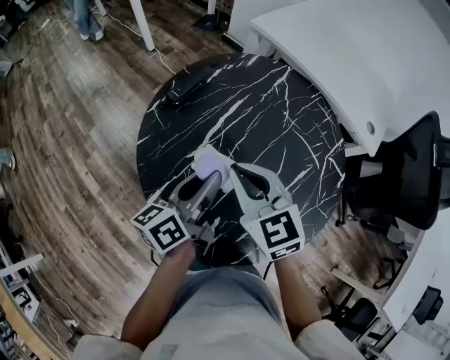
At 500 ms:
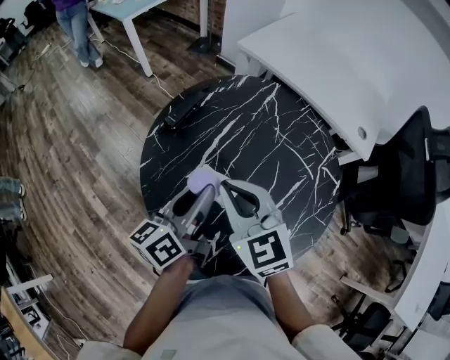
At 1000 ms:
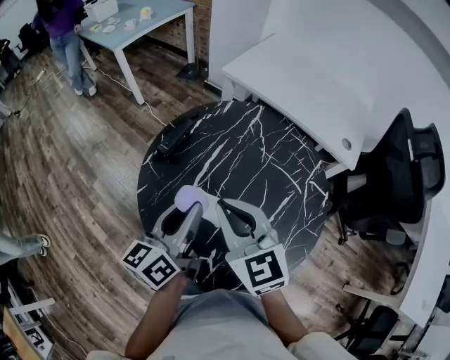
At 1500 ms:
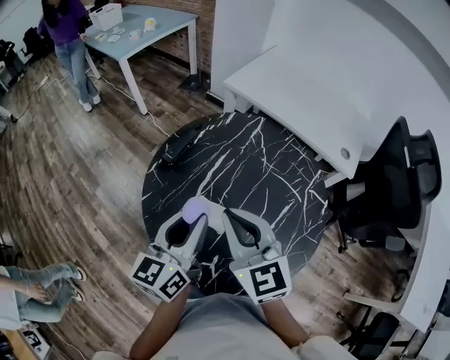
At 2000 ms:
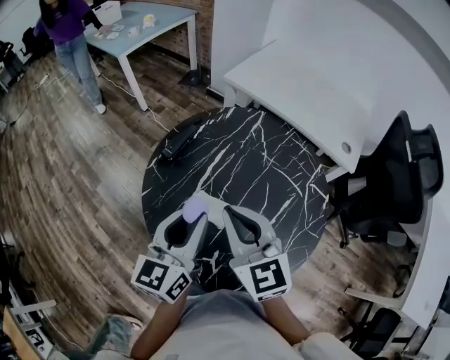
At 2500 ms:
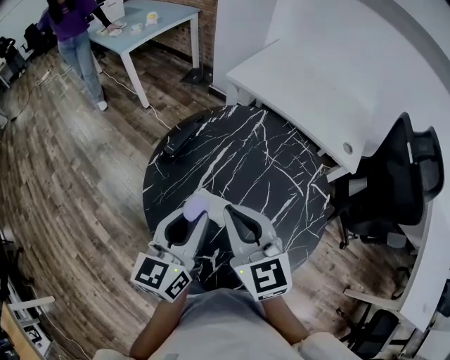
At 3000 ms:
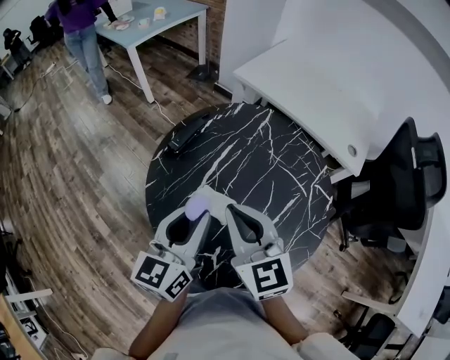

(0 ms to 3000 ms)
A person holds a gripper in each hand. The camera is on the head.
0 ms - 1500 ms: The grippers both shift upward by some 10 cm. The left gripper changes its angle by some 30 degrees.
1500 ms - 3000 ms: There are only small adjustments of the grippers.

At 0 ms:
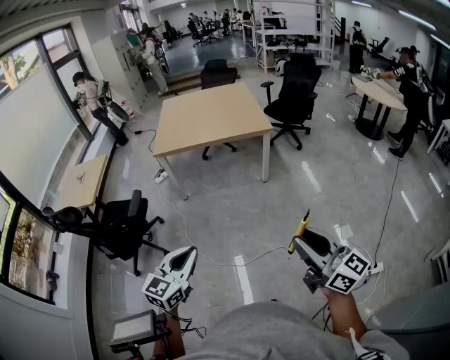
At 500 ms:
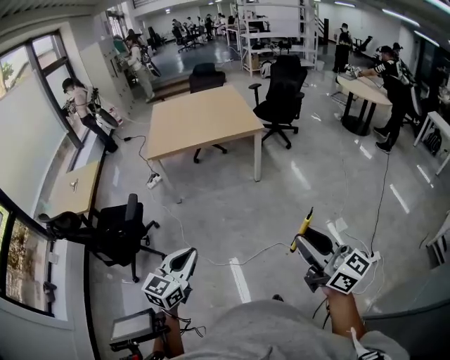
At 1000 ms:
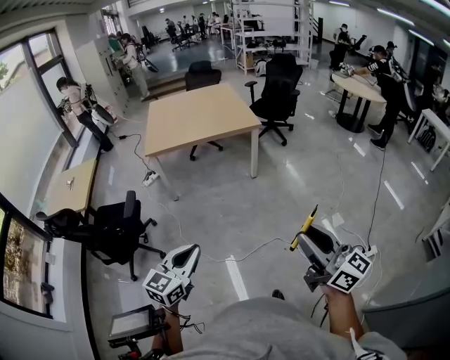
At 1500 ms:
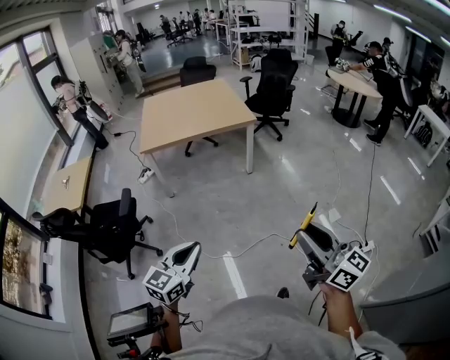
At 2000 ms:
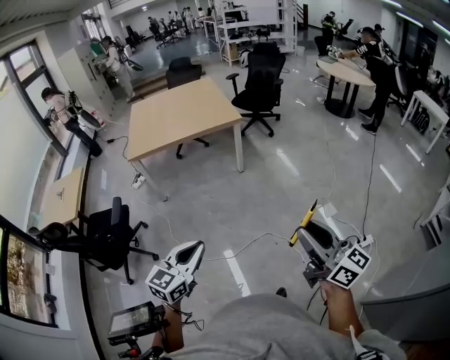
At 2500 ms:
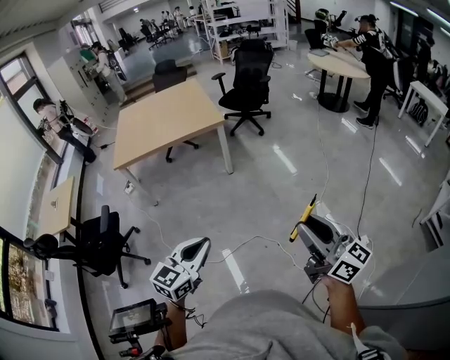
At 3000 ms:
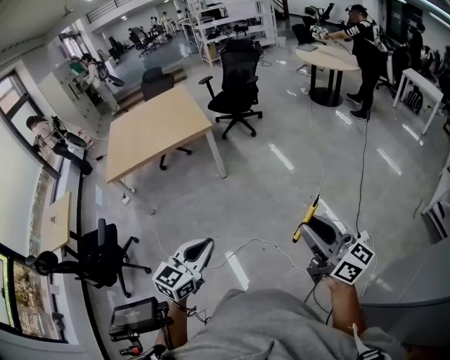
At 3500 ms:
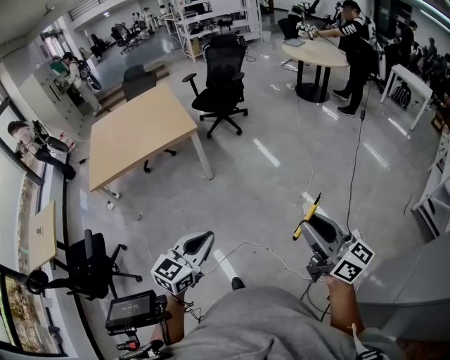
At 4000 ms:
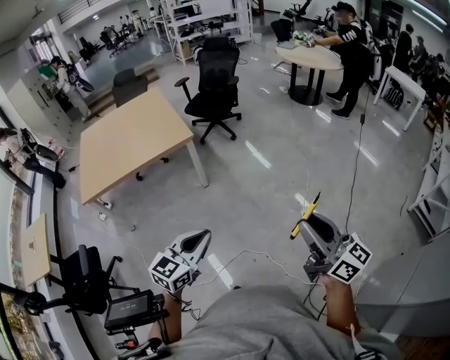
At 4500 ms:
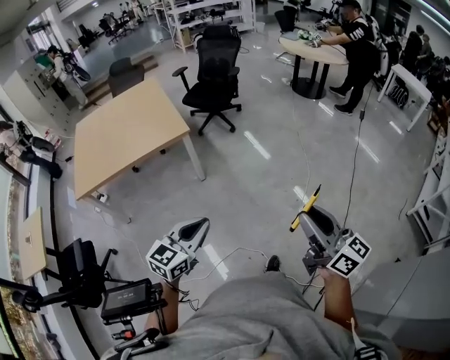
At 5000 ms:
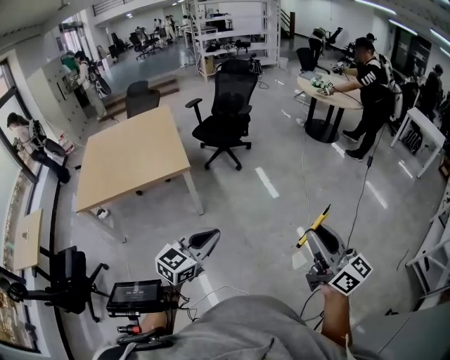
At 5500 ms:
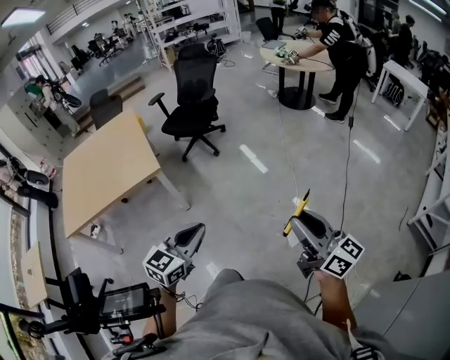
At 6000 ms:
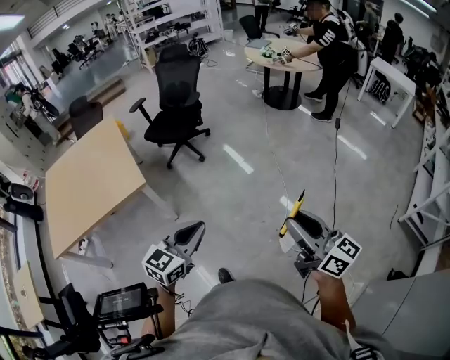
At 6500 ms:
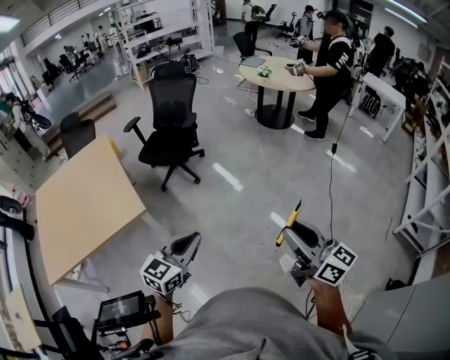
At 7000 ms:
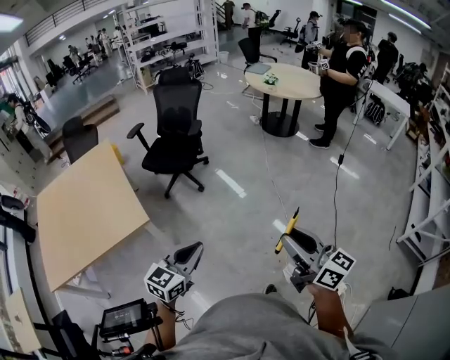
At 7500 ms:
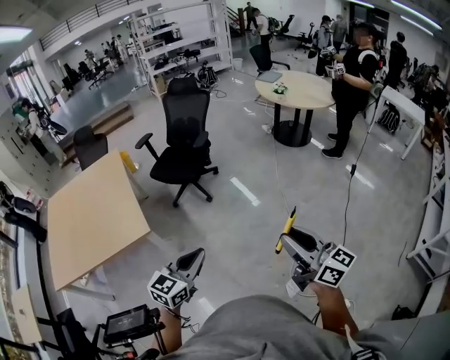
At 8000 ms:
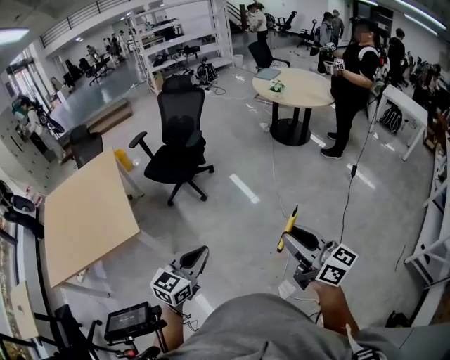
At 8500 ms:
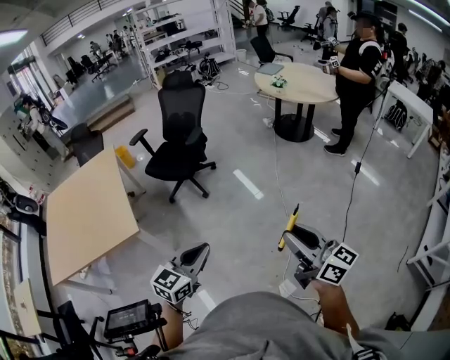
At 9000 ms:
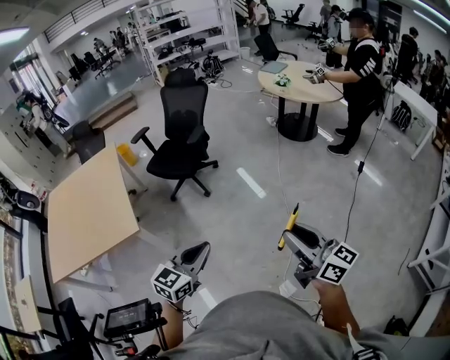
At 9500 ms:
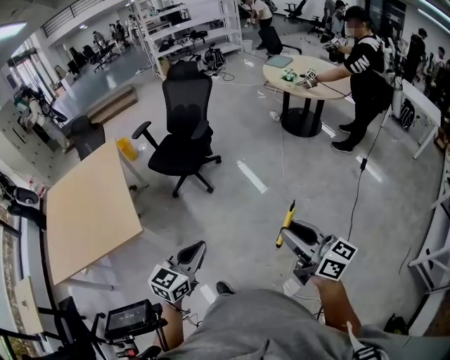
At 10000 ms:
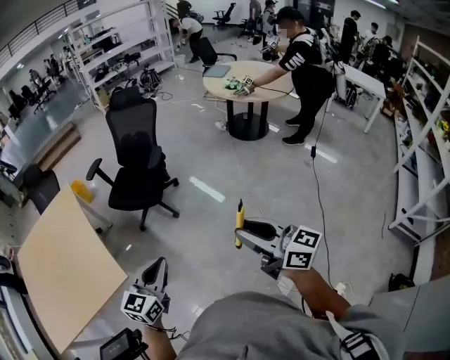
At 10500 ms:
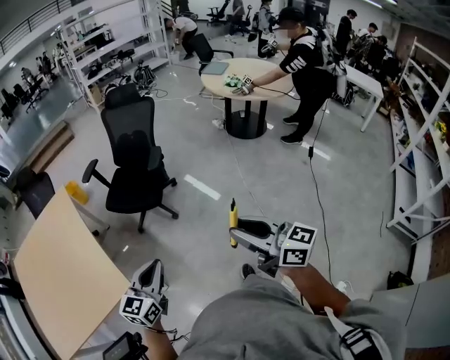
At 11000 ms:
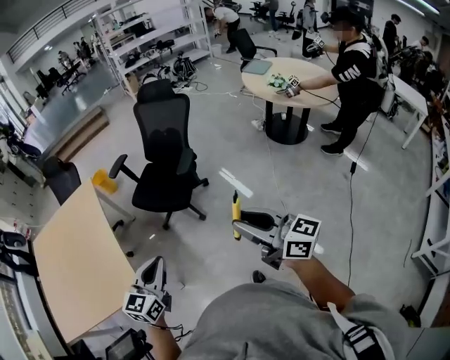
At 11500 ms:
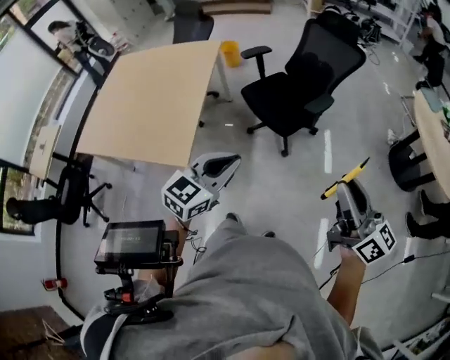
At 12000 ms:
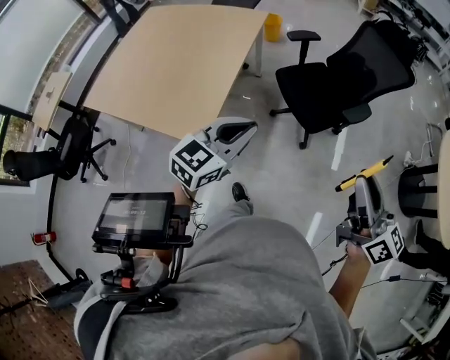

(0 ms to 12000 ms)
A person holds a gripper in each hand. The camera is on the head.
0 ms - 2000 ms: The right gripper is displaced backward by about 5 cm. Meanwhile the left gripper travels to the right by approximately 5 cm.
2000 ms - 4000 ms: The grippers both shift forward and to the right by about 35 cm.
4000 ms - 6000 ms: Both grippers are carried forward and to the right, about 40 cm.
6000 ms - 8000 ms: The two grippers go approximately 25 cm forward.
8000 ms - 10000 ms: Both grippers travel together forward and to the left, about 20 cm.
10000 ms - 12000 ms: The right gripper shifts by approximately 40 cm, and turns by some 30 degrees, while the left gripper changes place by roughly 35 cm, and swivels about 30 degrees.

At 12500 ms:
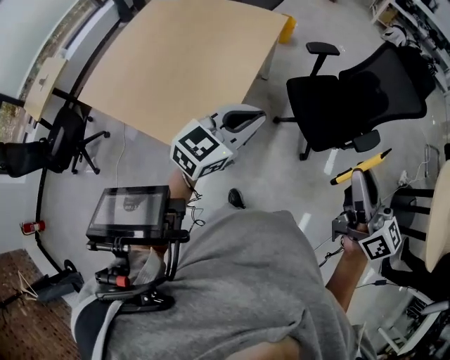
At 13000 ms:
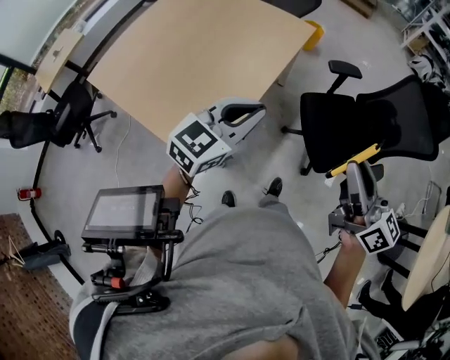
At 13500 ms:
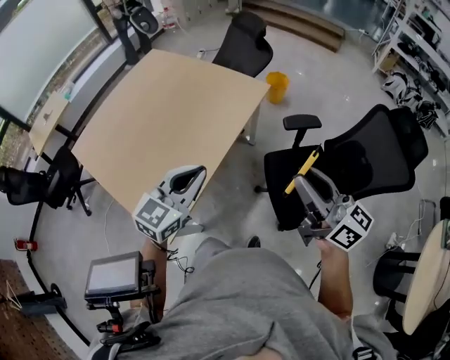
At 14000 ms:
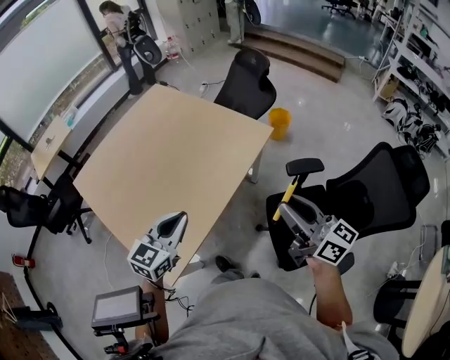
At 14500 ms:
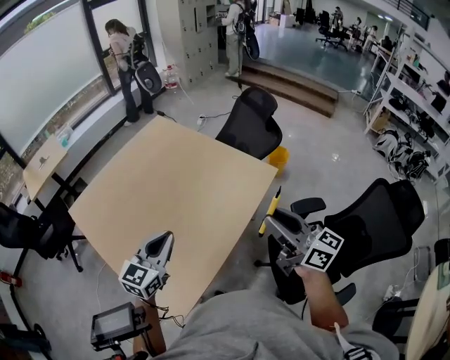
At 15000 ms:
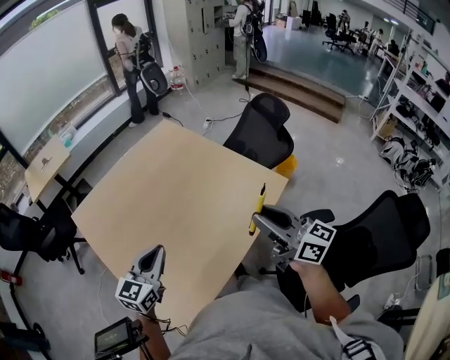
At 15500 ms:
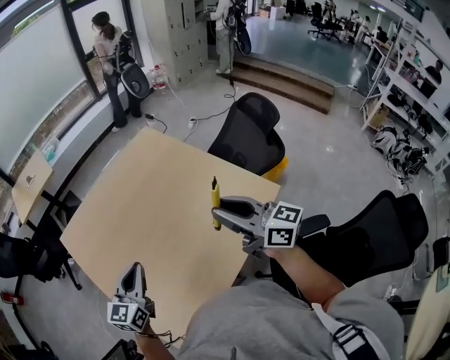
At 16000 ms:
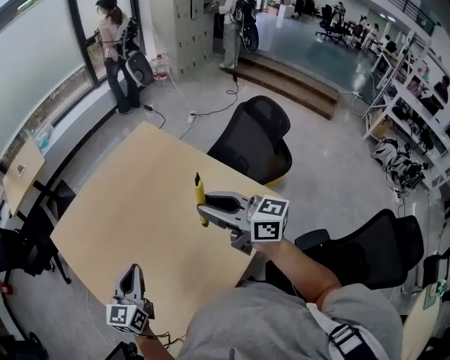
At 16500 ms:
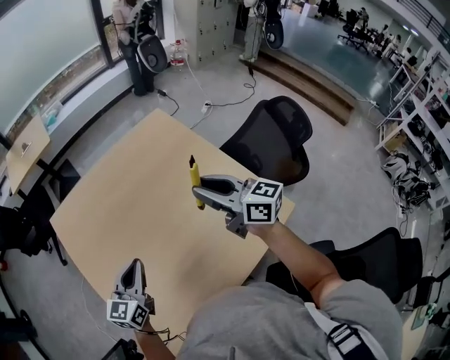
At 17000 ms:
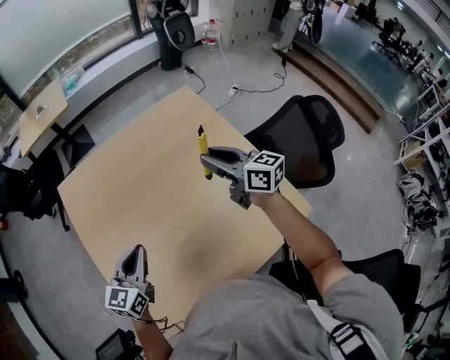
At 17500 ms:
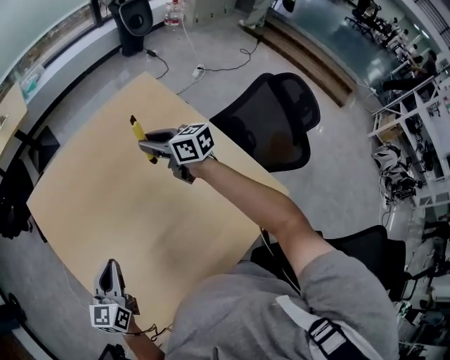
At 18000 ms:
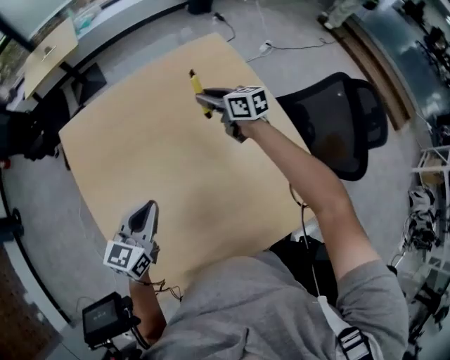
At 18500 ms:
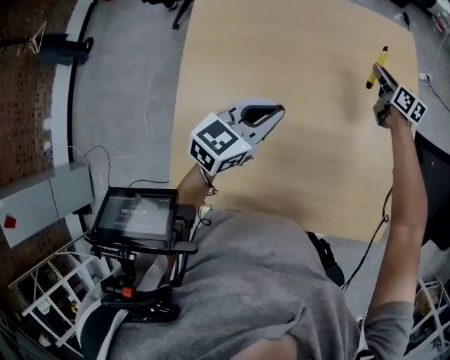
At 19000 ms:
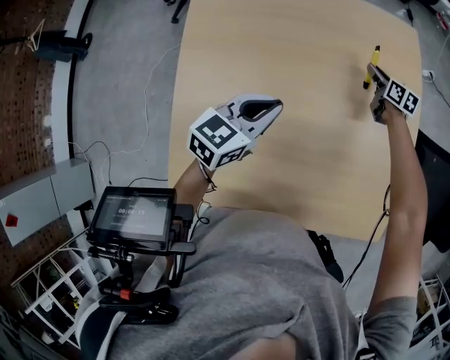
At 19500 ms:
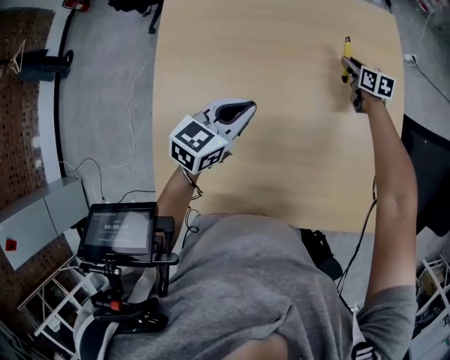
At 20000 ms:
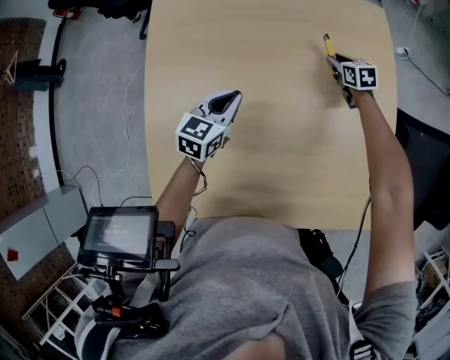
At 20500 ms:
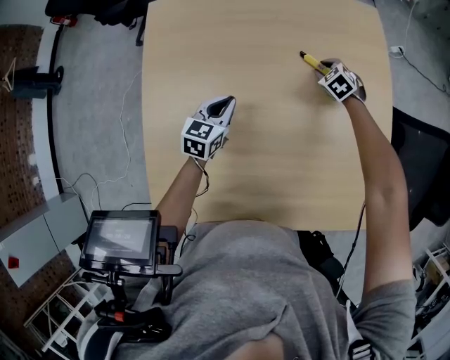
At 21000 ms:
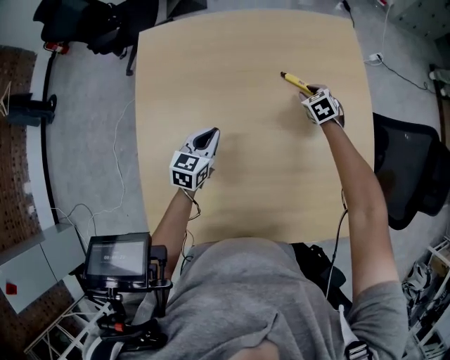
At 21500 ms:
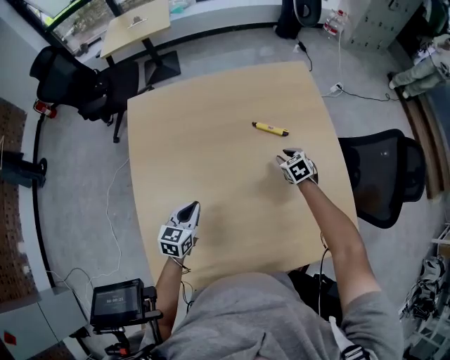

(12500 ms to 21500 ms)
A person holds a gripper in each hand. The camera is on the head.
12500 ms - 14500 ms: The right gripper changes place by approximately 50 cm, and swivels approximately 30 degrees, while the left gripper ends up roughly 40 cm from where it was, and turns by roughly 40 degrees.
14500 ms - 17000 ms: The right gripper moves about 60 cm, and swivels approximately 40 degrees; the left gripper moves about 25 cm, and swivels about 40 degrees.
17000 ms - 19500 ms: The left gripper heads downward, forward and to the right, covering roughly 15 cm; the right gripper is displaced downward and forward by approximately 40 cm, and points its fingers approximately 30 degrees further downward.
19500 ms - 21500 ms: The left gripper is displaced downward and to the left by roughly 20 cm; the right gripper goes some 15 cm backward, downward and to the left, and rotates roughly 30 degrees.

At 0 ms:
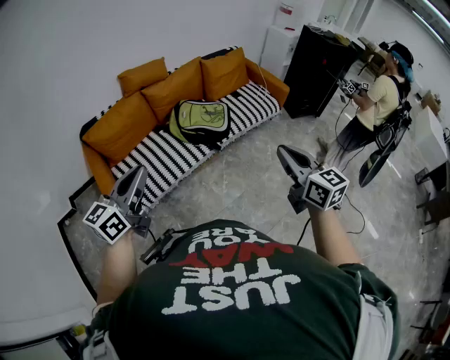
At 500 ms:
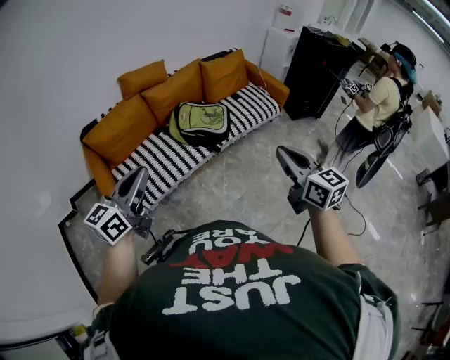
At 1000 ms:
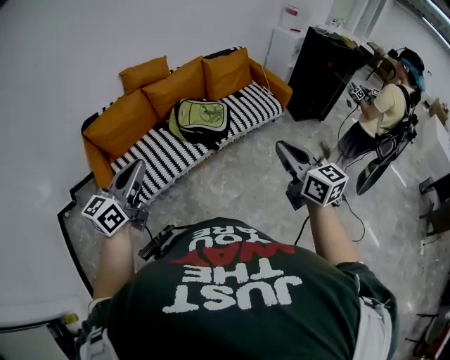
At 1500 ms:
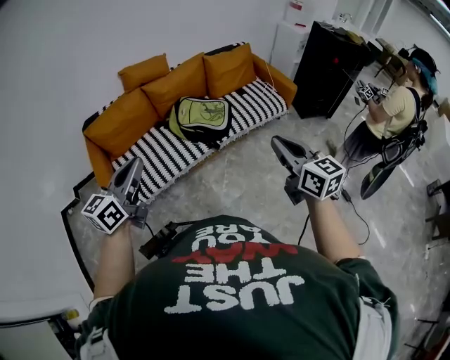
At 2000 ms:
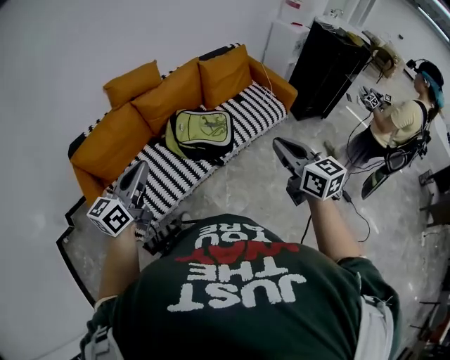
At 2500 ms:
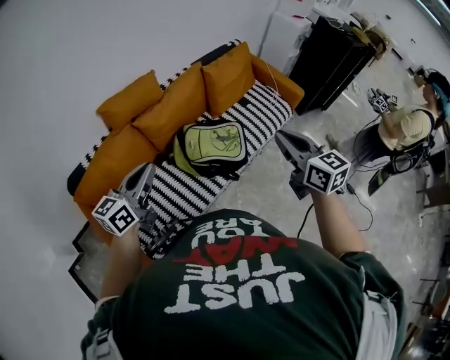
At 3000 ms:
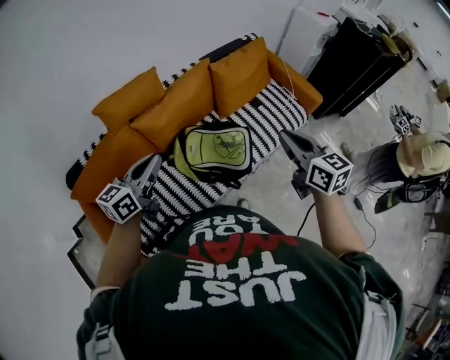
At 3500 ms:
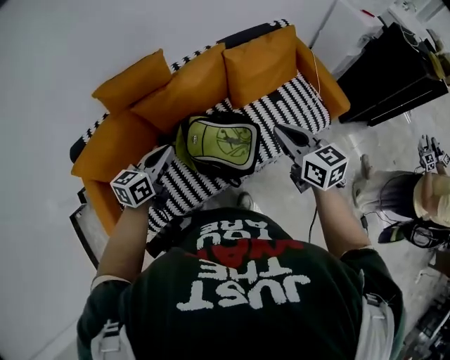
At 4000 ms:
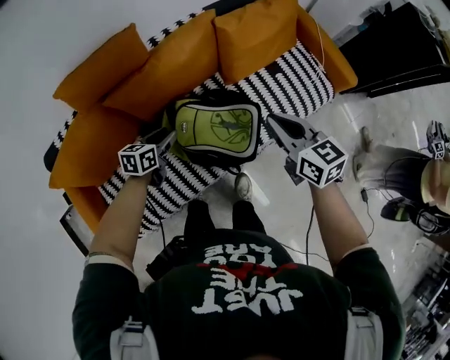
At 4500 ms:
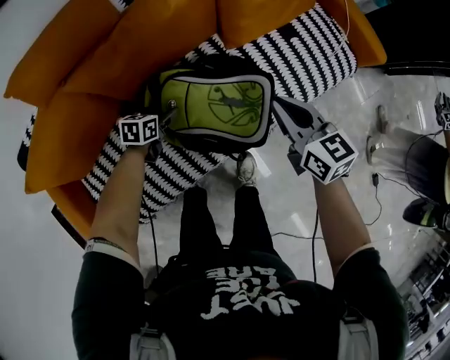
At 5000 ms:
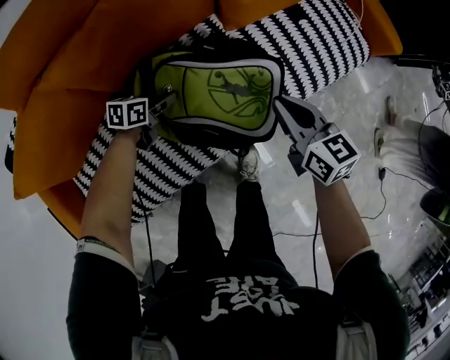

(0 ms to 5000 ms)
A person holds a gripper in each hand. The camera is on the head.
0 ms - 2500 ms: The pair of grippers is taken forward, some 40 cm.
2500 ms - 5000 ms: Both grippers move downward and forward, about 60 cm. The right gripper turns by some 20 degrees; the left gripper angles its fingers downward, by some 40 degrees, and opens.
